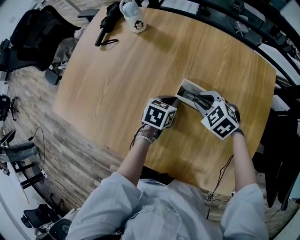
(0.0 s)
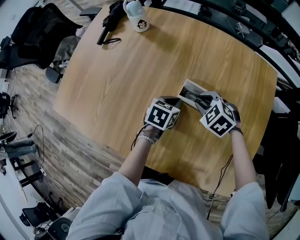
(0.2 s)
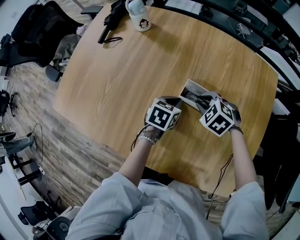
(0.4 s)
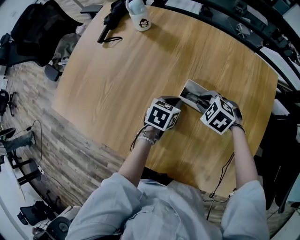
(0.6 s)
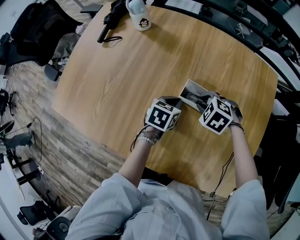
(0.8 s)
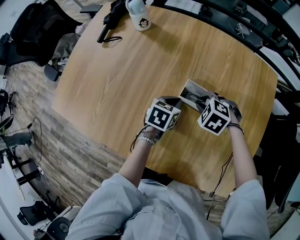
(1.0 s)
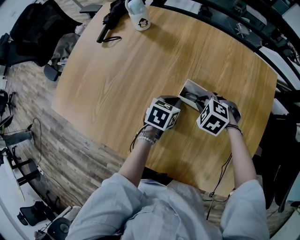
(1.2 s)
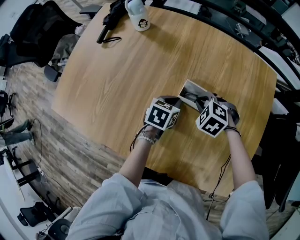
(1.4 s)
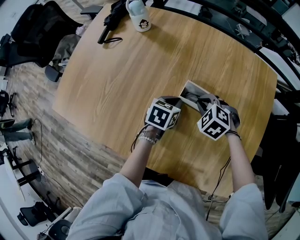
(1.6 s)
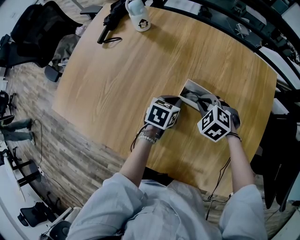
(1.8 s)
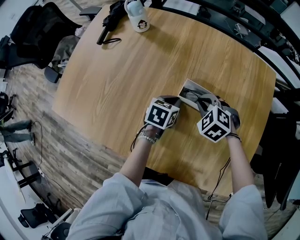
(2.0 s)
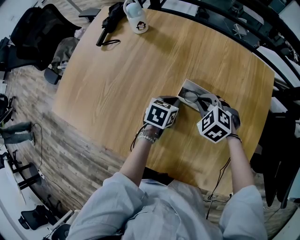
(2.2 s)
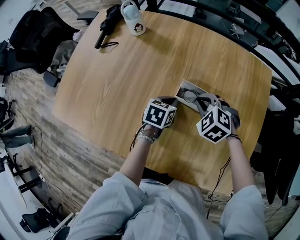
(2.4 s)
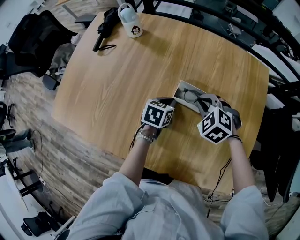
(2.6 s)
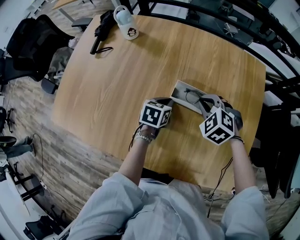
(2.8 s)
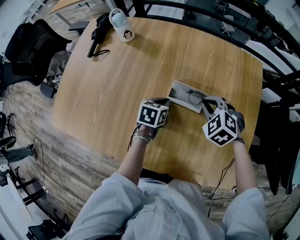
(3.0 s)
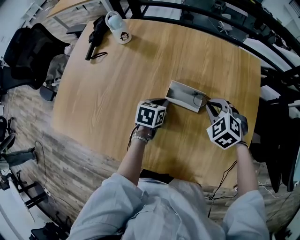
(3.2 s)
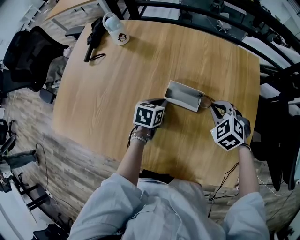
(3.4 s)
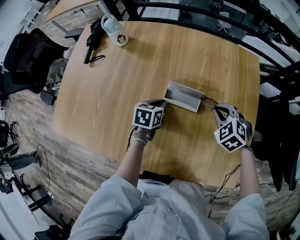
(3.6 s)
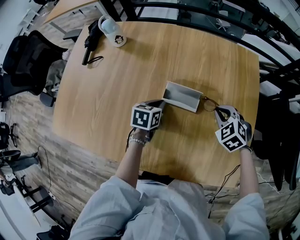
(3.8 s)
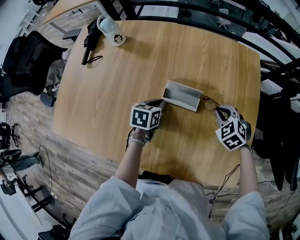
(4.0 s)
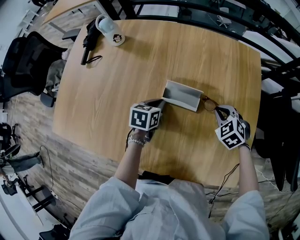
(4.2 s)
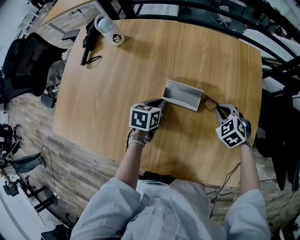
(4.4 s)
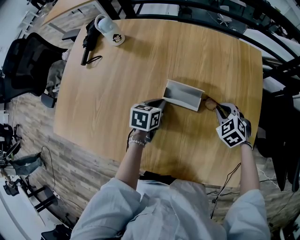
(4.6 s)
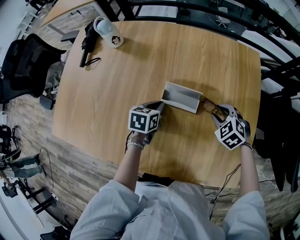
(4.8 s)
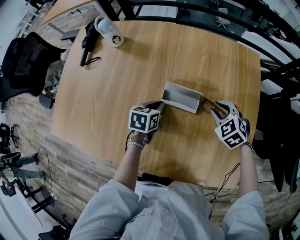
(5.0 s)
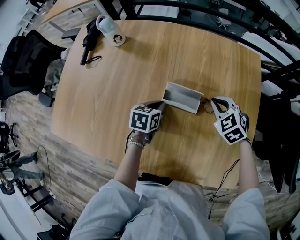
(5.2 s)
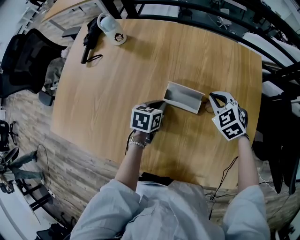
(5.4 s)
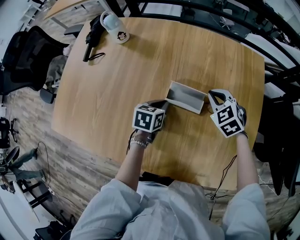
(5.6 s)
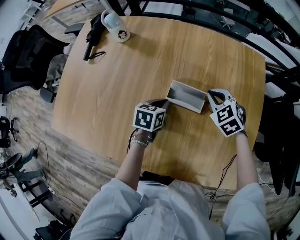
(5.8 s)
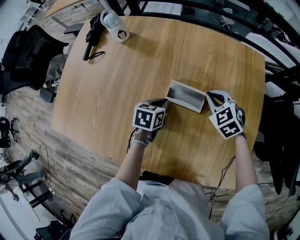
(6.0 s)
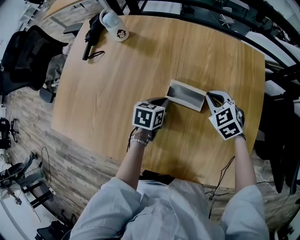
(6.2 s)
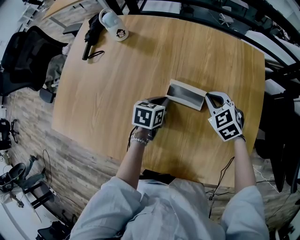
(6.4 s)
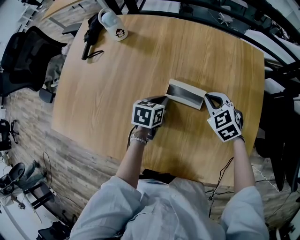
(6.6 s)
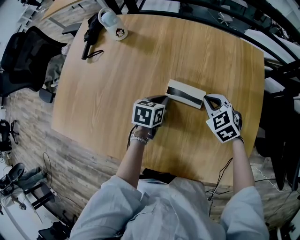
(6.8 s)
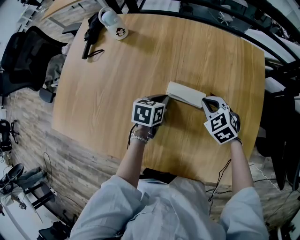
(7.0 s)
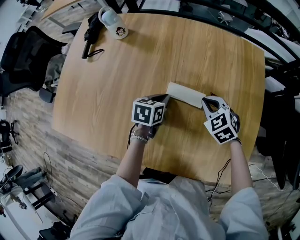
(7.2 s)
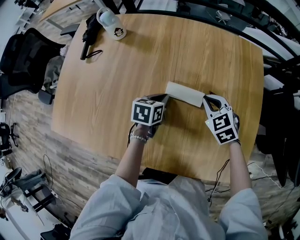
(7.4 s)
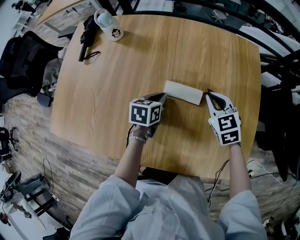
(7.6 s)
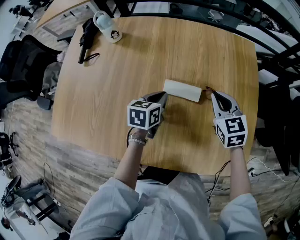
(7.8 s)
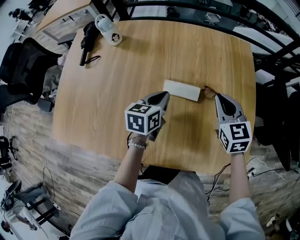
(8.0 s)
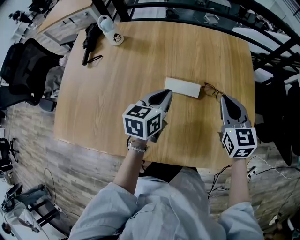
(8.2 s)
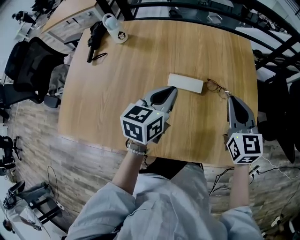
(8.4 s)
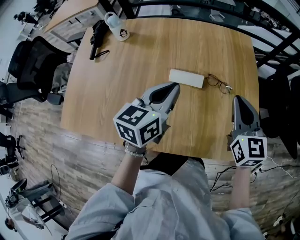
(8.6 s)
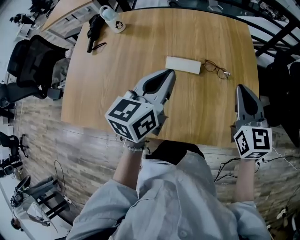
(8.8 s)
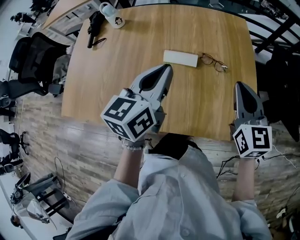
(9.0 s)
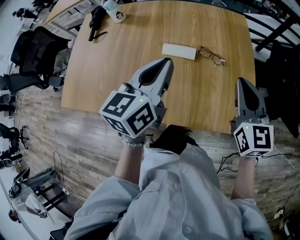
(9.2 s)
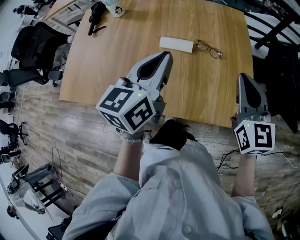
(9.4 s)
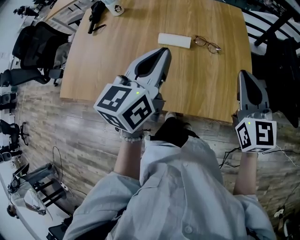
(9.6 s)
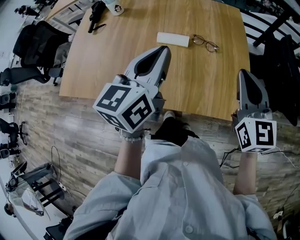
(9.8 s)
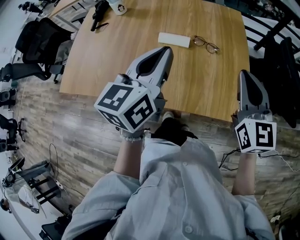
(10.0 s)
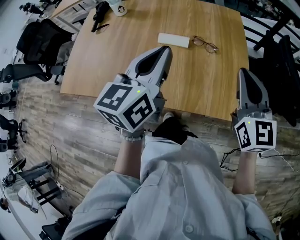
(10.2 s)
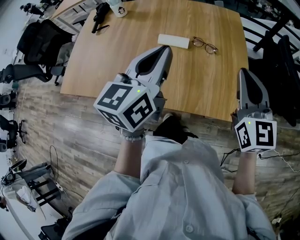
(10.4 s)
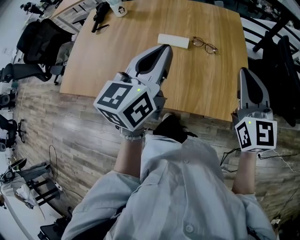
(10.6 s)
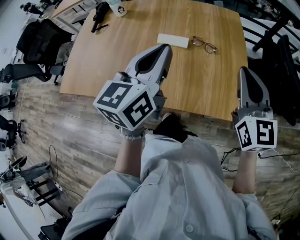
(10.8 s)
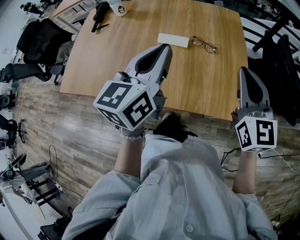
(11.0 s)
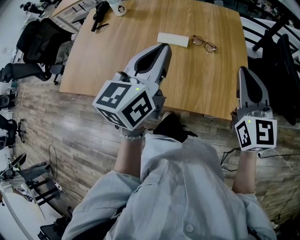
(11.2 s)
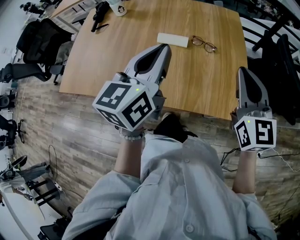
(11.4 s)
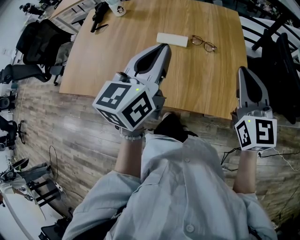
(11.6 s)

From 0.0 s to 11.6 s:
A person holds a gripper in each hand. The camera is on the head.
From 0.0 s to 1.4 s: The grippers make only small movements.
From 1.4 s to 2.8 s: The right gripper goes about 5 cm upward.
From 2.8 s to 4.4 s: The right gripper travels to the right and downward by roughly 15 cm.
From 4.4 s to 5.8 s: The right gripper travels to the left and forward by about 10 cm, and opens, then closes again.
From 5.8 s to 7.2 s: The right gripper travels backward by some 5 cm.
From 7.2 s to 8.8 s: The left gripper heads upward, covering approximately 25 cm, and tips its fingers upward by approximately 30 degrees, while the right gripper heads upward, backward and to the right, covering approximately 25 cm, and tips its fingers upward by about 40 degrees.
From 8.8 s to 10.2 s: Both grippers travel together backward, upward and to the right, roughly 15 cm.
From 10.2 s to 11.6 s: Both grippers stay put.

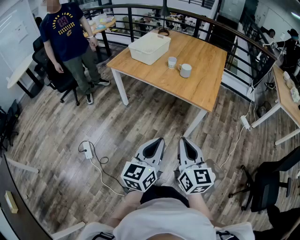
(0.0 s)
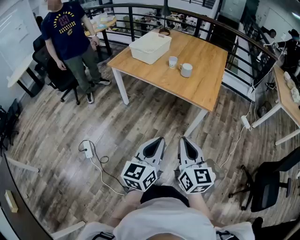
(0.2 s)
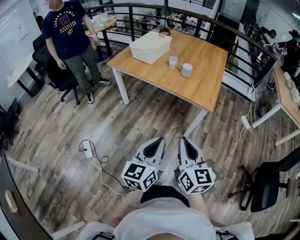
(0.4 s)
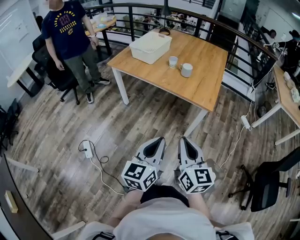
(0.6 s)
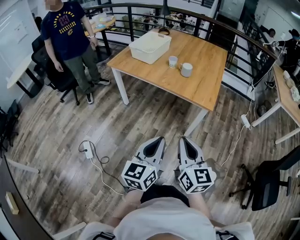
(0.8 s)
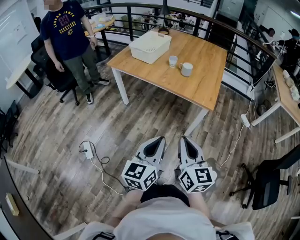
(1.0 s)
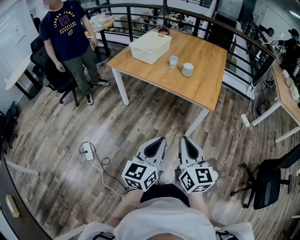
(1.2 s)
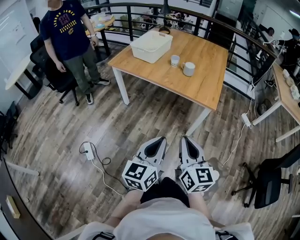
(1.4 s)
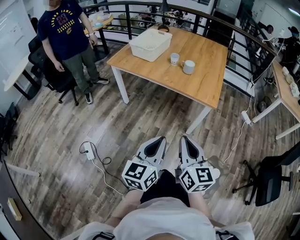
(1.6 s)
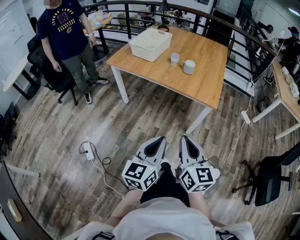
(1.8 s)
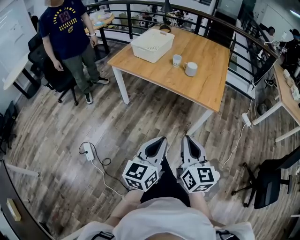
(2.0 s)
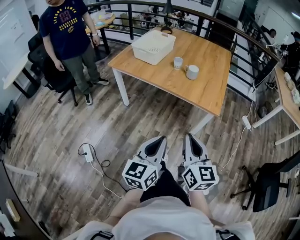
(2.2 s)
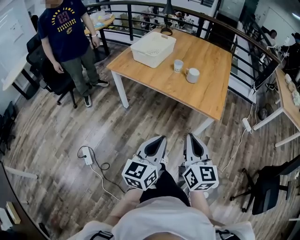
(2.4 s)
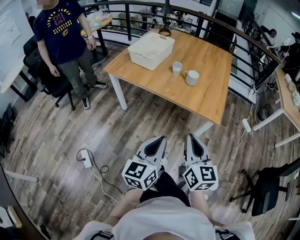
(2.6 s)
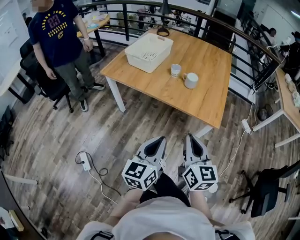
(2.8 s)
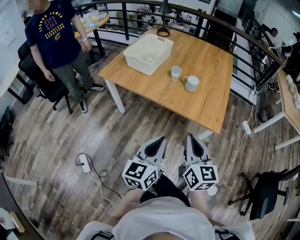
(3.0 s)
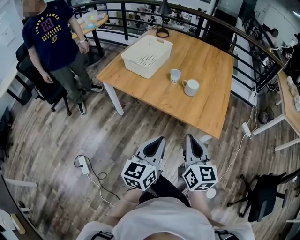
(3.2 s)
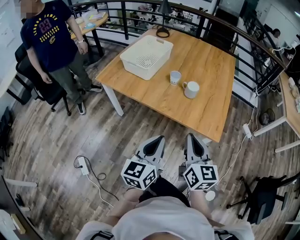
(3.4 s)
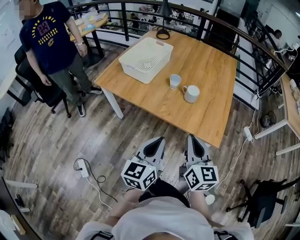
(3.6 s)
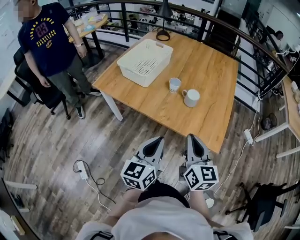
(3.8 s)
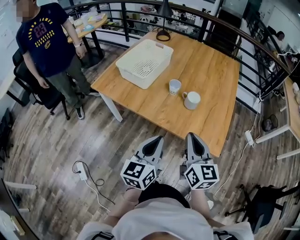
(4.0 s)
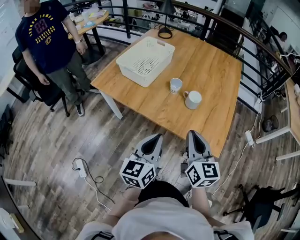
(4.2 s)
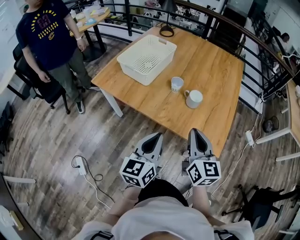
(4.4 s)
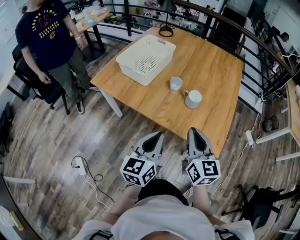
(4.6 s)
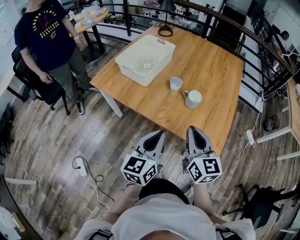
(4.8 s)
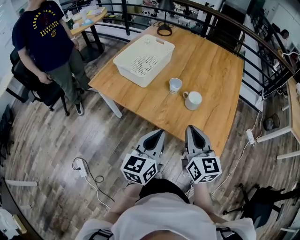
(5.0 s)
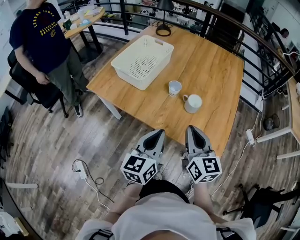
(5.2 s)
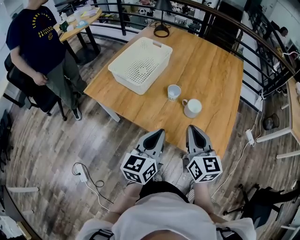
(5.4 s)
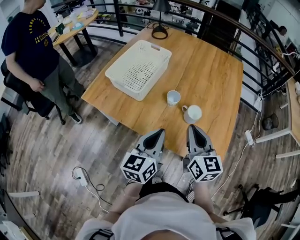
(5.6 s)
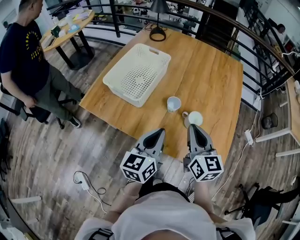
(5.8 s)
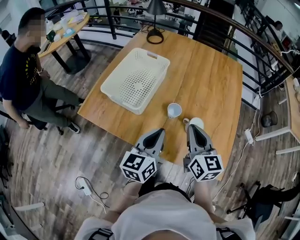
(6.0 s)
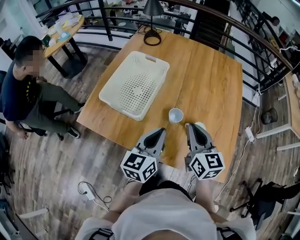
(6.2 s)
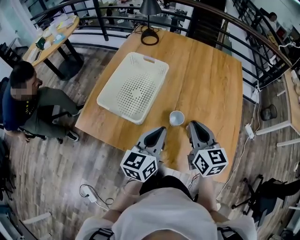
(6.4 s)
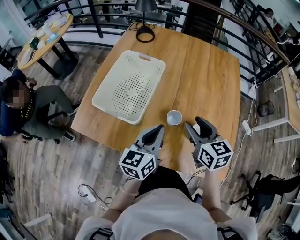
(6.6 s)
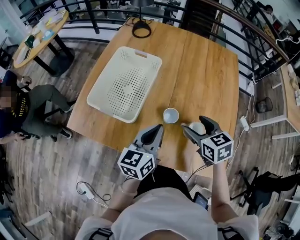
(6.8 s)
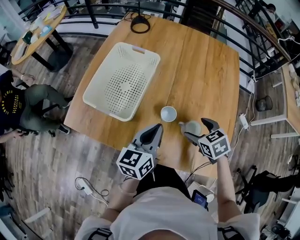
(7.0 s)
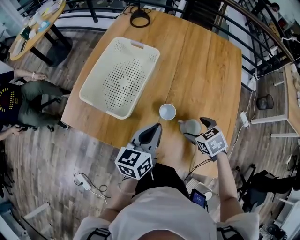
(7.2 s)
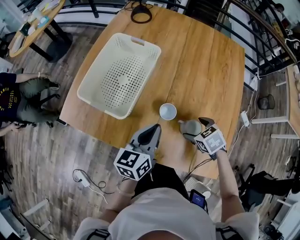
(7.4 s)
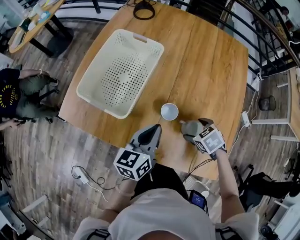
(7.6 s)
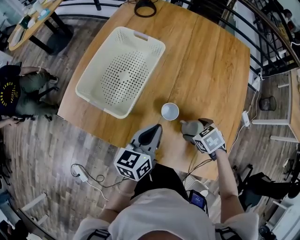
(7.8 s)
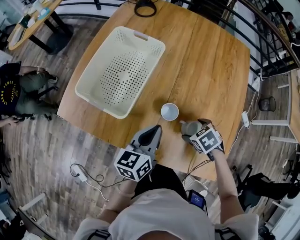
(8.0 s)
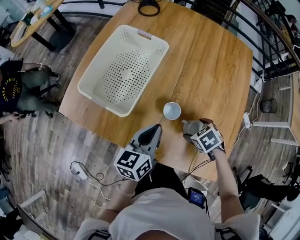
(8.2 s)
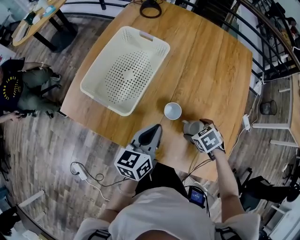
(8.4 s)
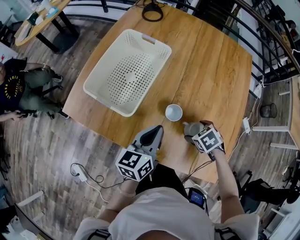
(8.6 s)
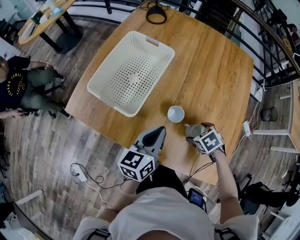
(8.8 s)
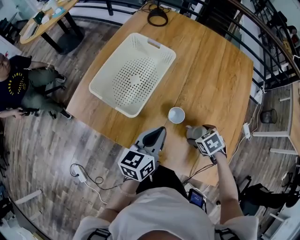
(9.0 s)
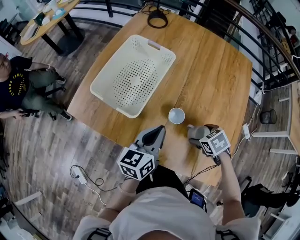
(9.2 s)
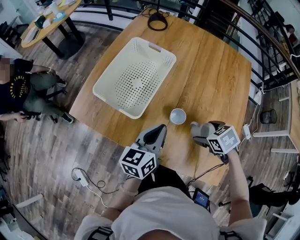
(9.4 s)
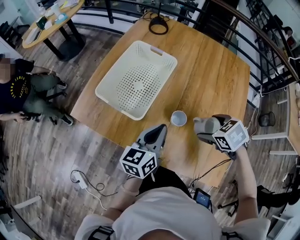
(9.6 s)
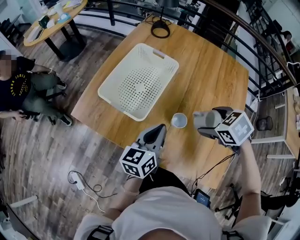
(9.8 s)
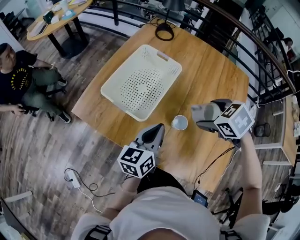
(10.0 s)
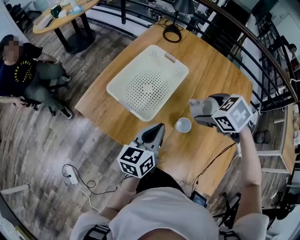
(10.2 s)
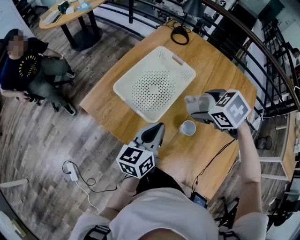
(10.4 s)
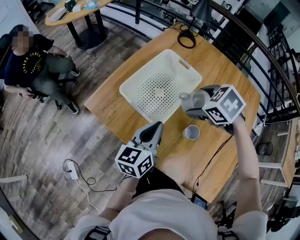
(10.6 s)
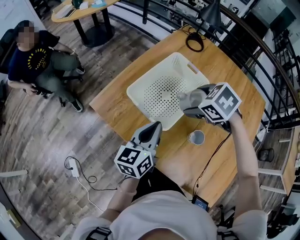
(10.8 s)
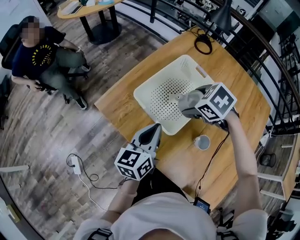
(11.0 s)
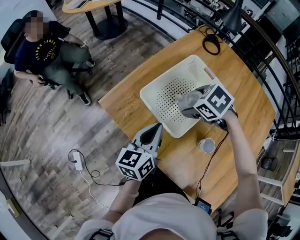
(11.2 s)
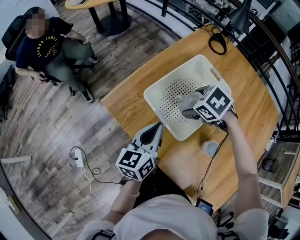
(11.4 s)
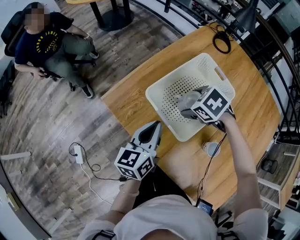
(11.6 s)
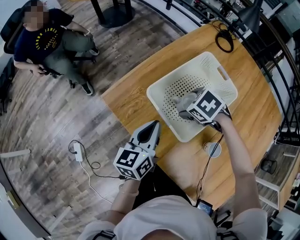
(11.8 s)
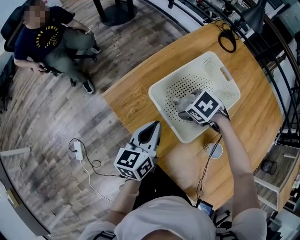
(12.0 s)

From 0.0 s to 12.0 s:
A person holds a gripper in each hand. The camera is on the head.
From 0.0 s to 1.6 s: The grippers move only a little.
From 1.6 s to 3.0 s: The two grippers go some 20 cm forward.
From 3.0 s to 4.4 s: The two grippers go roughly 15 cm forward.
From 4.4 s to 6.0 s: The two grippers go approximately 20 cm forward.
From 6.0 s to 7.6 s: The right gripper heads downward, covering roughly 20 cm, tilts its fingers approximately 60 degrees downward, and opens up, while the left gripper travels forward and downward by approximately 10 cm.
From 7.6 s to 9.0 s: The grippers move only a little.
From 9.0 s to 10.4 s: The right gripper is displaced upward by roughly 20 cm, and turns by roughly 30 degrees. The left gripper changes place by approximately 10 cm.
From 10.4 s to 12.0 s: The right gripper moves approximately 25 cm; the left gripper moves some 15 cm, and rotates approximately 20 degrees.
